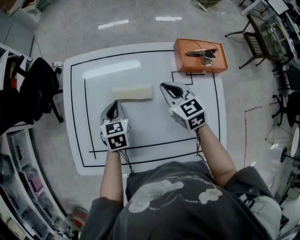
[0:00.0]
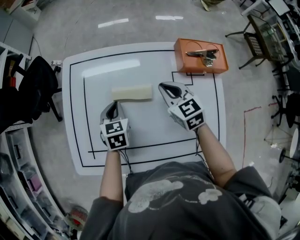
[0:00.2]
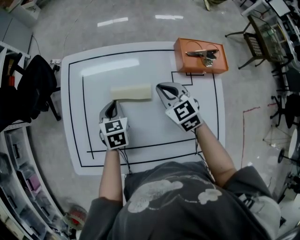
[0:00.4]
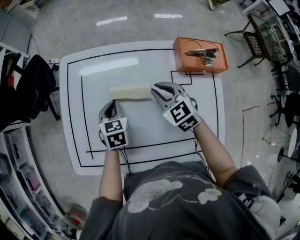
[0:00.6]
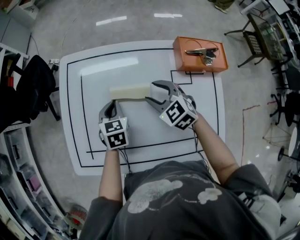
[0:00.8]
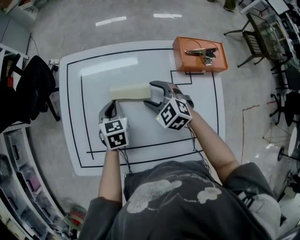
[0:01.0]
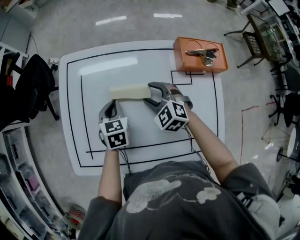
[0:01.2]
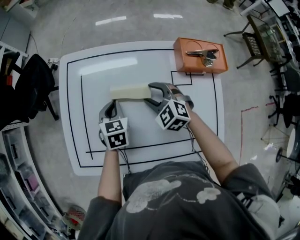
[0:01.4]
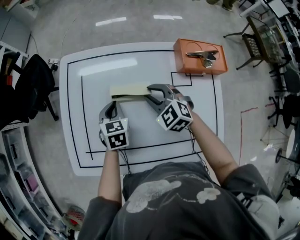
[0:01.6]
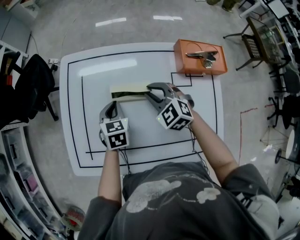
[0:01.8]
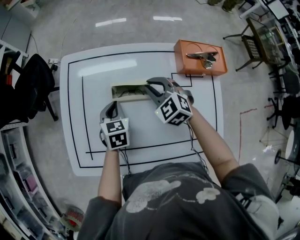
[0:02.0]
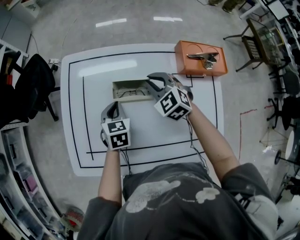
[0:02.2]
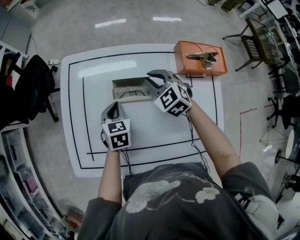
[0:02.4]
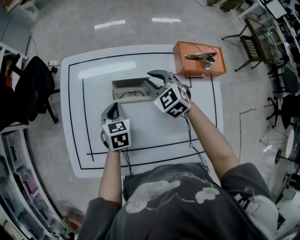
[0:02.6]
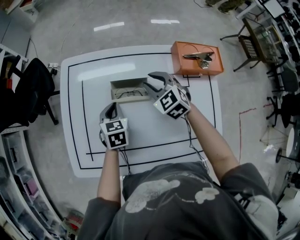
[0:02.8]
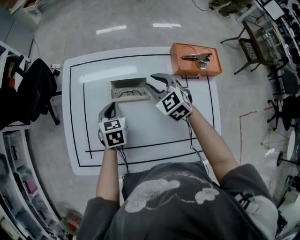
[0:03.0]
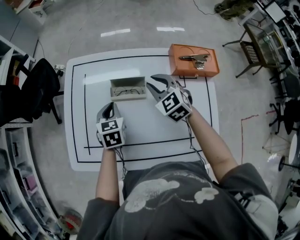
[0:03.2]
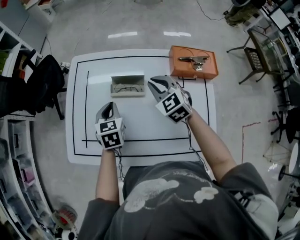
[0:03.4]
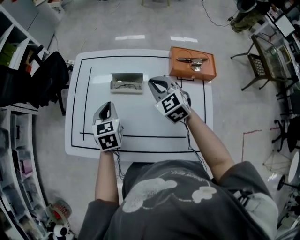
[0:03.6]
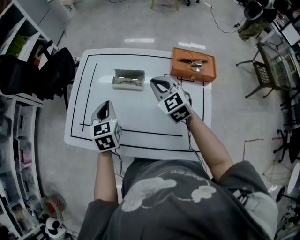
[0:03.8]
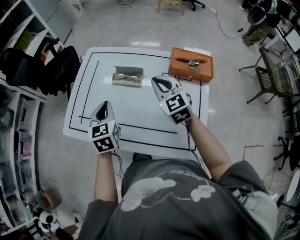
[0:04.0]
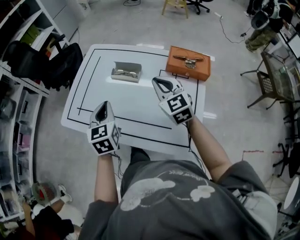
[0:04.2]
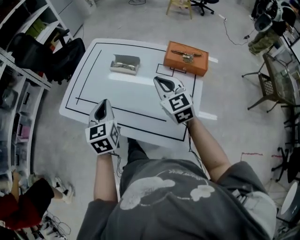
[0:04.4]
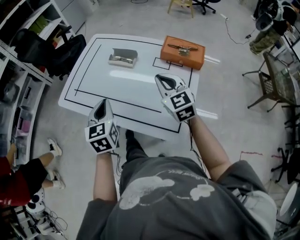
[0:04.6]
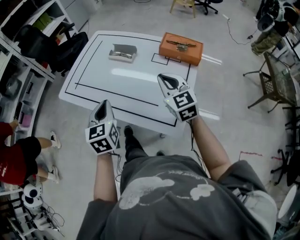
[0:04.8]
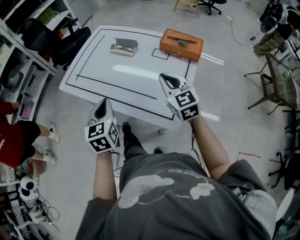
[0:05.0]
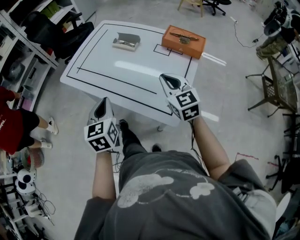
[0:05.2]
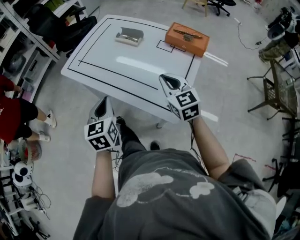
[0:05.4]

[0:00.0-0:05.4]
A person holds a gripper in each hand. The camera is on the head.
0:00.0 to 0:01.4: The right gripper heads downward and to the left, covering approximately 10 cm, swivels roughly 40 degrees, and opens its fingers.
0:01.4 to 0:02.8: The right gripper is displaced forward by about 5 cm, and closes up.
0:02.8 to 0:04.0: The right gripper travels backward and upward by about 20 cm, and closes its fingers, while the left gripper shifts about 20 cm upward and backward, and rotates roughly 30 degrees.
0:04.0 to 0:05.4: The two grippers go approximately 25 cm backward.

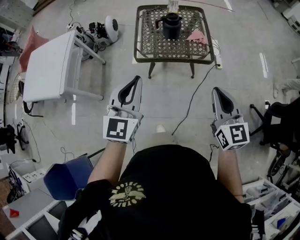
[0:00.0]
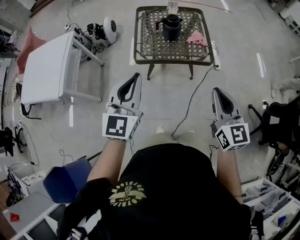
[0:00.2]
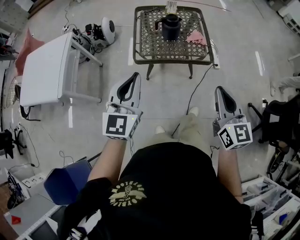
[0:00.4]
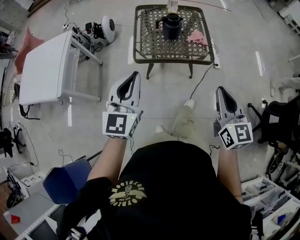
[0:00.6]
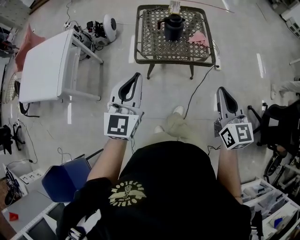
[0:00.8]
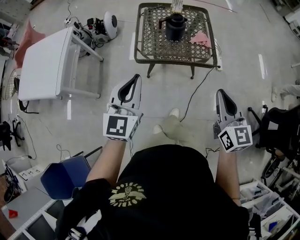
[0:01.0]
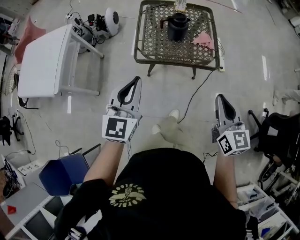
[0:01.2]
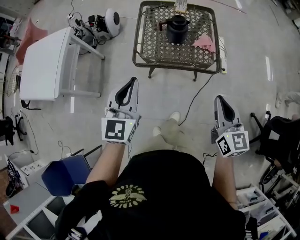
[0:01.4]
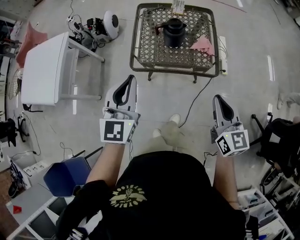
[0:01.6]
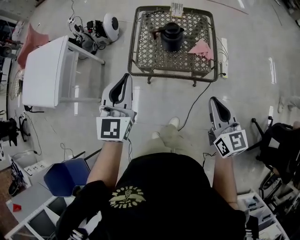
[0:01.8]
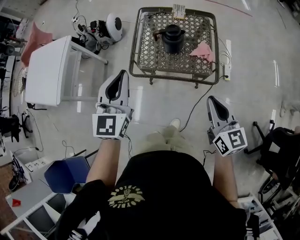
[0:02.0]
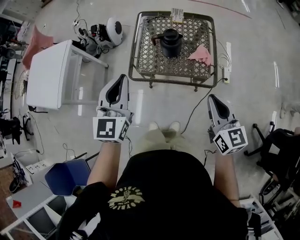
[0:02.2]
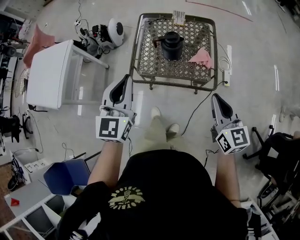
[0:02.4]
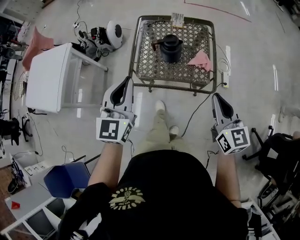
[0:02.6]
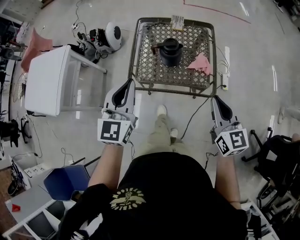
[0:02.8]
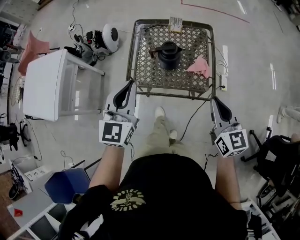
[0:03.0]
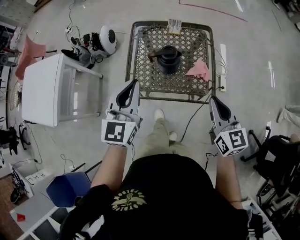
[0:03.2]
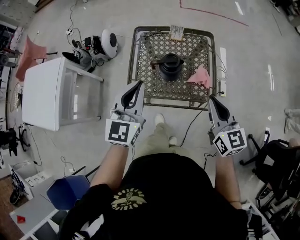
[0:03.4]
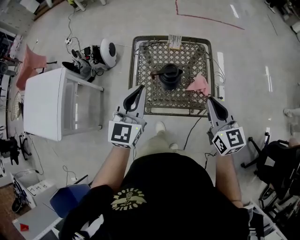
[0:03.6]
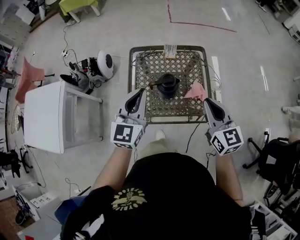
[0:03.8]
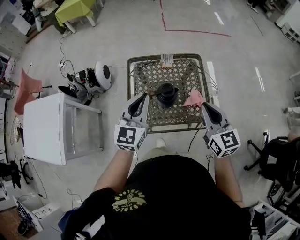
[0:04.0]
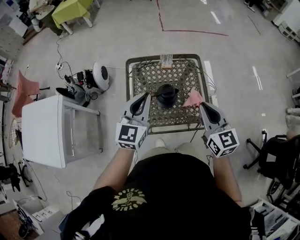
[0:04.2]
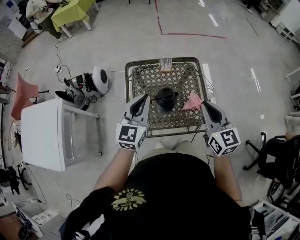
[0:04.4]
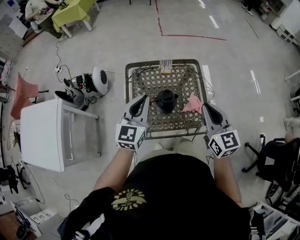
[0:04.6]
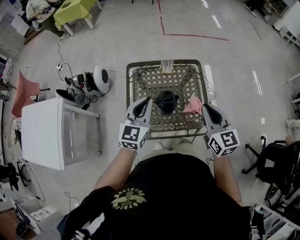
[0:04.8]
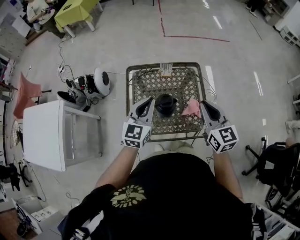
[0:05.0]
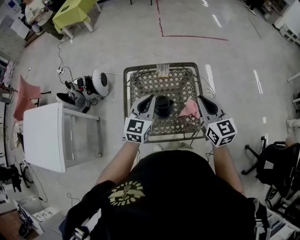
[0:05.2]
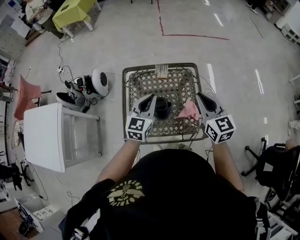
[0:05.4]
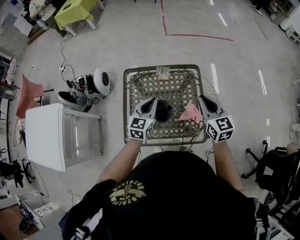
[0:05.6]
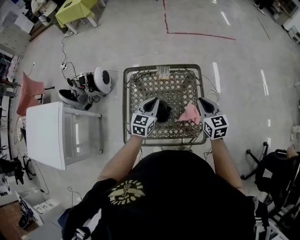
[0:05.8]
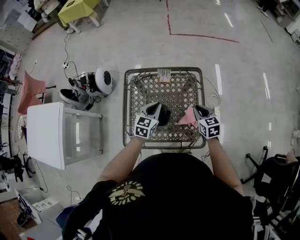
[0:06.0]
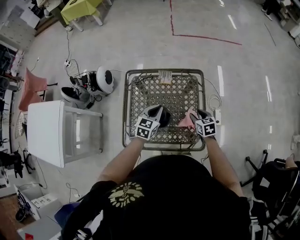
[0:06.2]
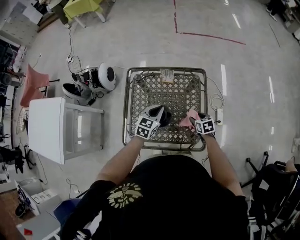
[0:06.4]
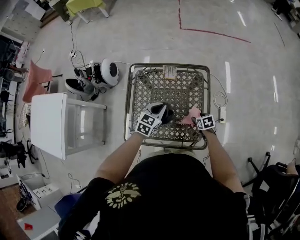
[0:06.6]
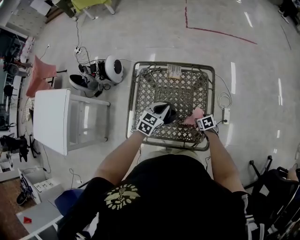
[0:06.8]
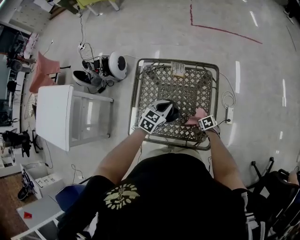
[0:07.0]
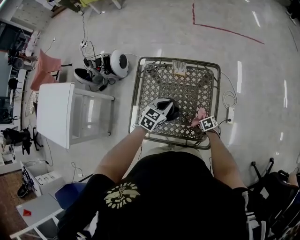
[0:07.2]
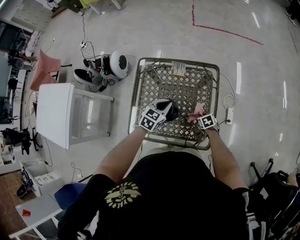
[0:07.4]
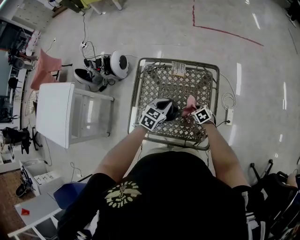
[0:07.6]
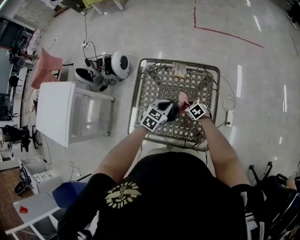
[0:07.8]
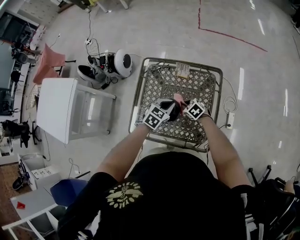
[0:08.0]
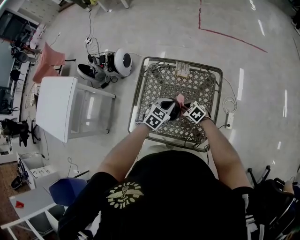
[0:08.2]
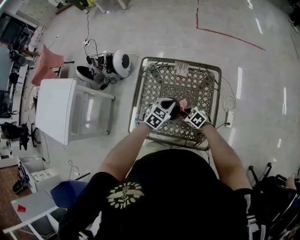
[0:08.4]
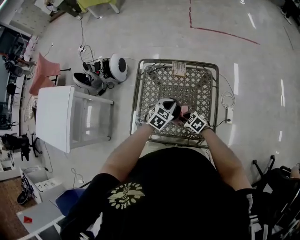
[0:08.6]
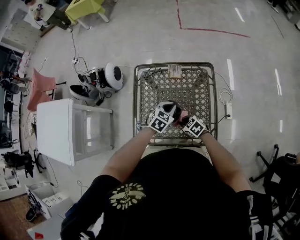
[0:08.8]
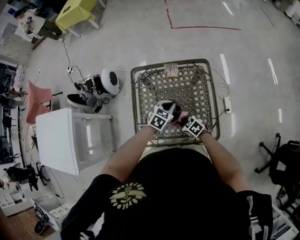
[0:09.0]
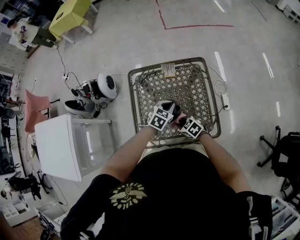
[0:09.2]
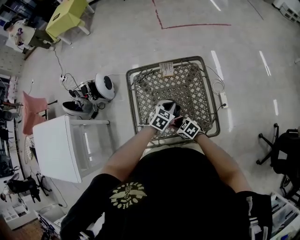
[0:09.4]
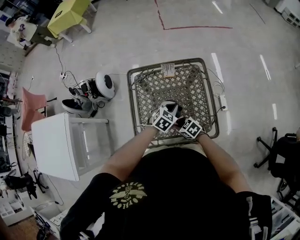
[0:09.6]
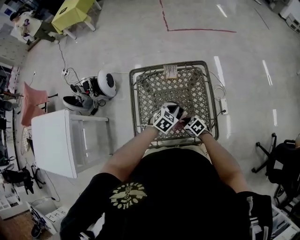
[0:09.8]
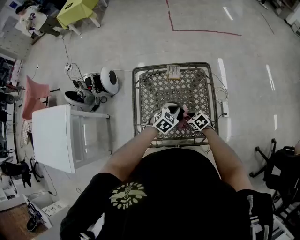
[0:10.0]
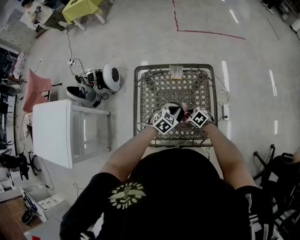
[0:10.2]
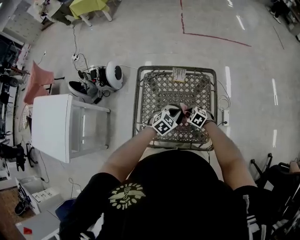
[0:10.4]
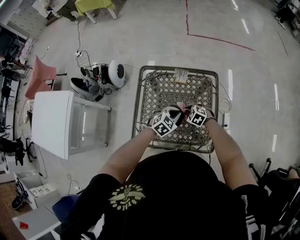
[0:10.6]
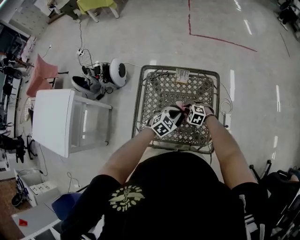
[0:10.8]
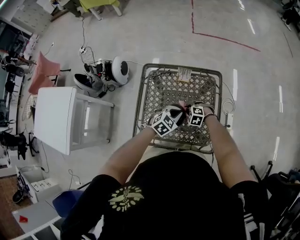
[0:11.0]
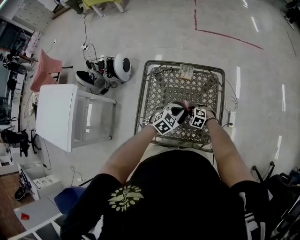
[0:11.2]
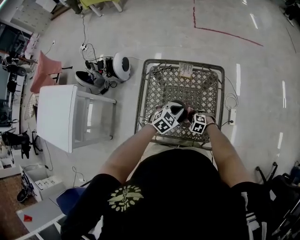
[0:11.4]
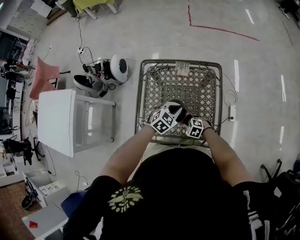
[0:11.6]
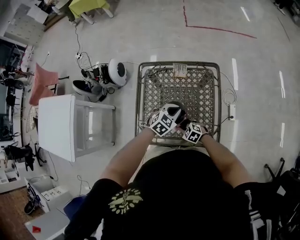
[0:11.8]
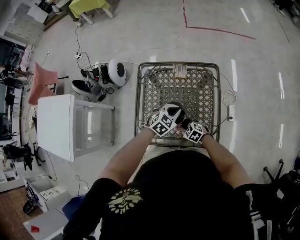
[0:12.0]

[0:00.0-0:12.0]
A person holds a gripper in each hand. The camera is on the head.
0:00.0 to 0:01.6: The left gripper goes approximately 15 cm forward. Meanwhile the right gripper is displaced forward and downward by some 15 cm.
0:01.6 to 0:03.0: The right gripper shifts about 15 cm forward. Meanwhile the left gripper shifts about 15 cm forward and to the right.
0:03.0 to 0:04.4: The right gripper travels forward and to the left by about 15 cm; the left gripper heads forward, covering approximately 15 cm.
0:04.4 to 0:06.0: The left gripper moves downward, forward and to the right, approximately 25 cm, and rotates some 20 degrees; the right gripper moves downward and forward, approximately 25 cm, and changes its angle by roughly 20 degrees.
0:06.0 to 0:07.6: The left gripper travels downward by approximately 5 cm. The right gripper goes approximately 20 cm downward, swivels about 30 degrees, and opens, then closes again.
0:07.6 to 0:09.0: The right gripper moves to the left, backward and upward, some 20 cm.
0:09.0 to 0:10.4: The right gripper travels forward and to the right by roughly 10 cm, and rotates approximately 20 degrees.
0:10.4 to 0:12.0: The right gripper changes place by about 10 cm.

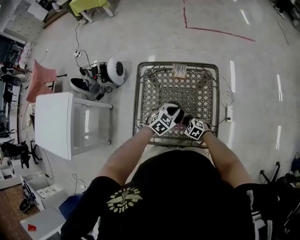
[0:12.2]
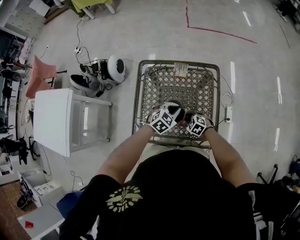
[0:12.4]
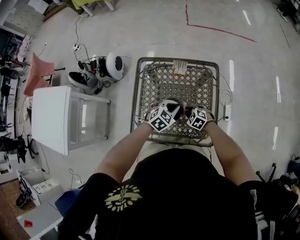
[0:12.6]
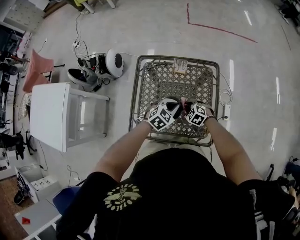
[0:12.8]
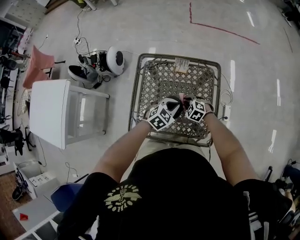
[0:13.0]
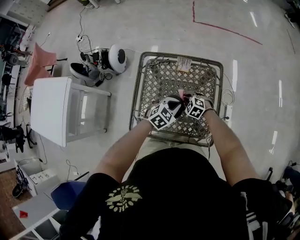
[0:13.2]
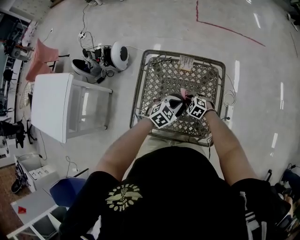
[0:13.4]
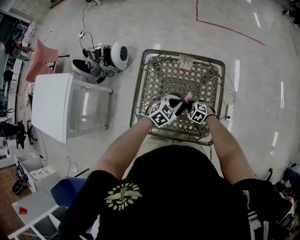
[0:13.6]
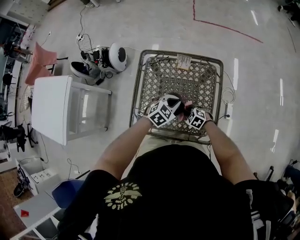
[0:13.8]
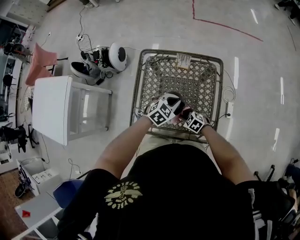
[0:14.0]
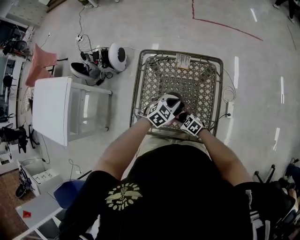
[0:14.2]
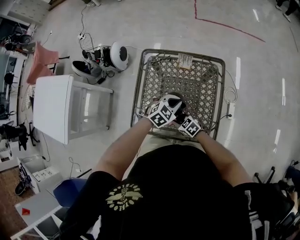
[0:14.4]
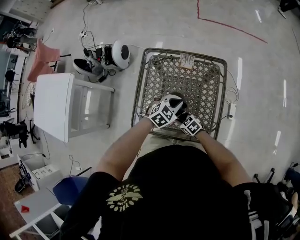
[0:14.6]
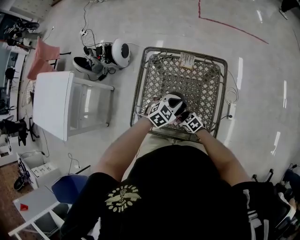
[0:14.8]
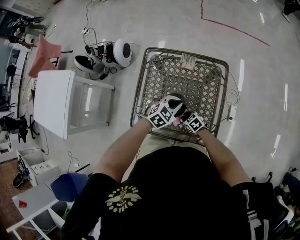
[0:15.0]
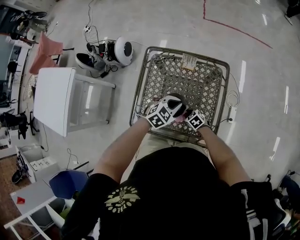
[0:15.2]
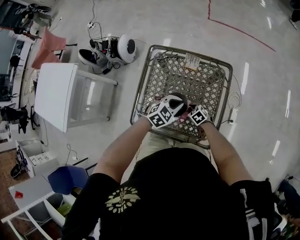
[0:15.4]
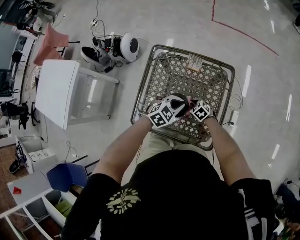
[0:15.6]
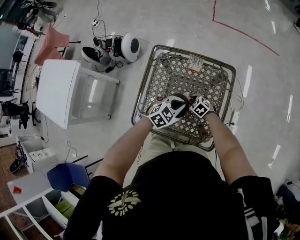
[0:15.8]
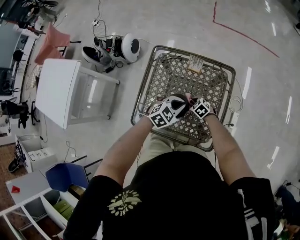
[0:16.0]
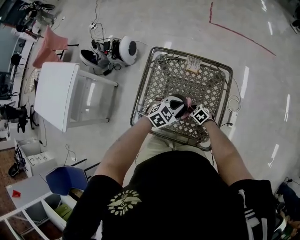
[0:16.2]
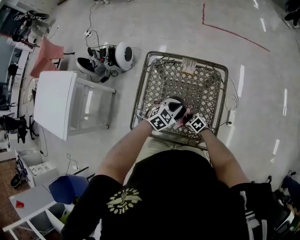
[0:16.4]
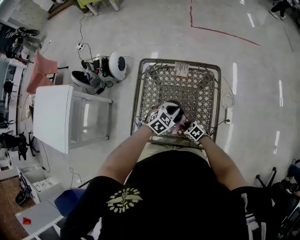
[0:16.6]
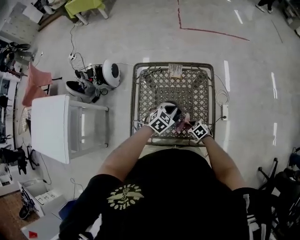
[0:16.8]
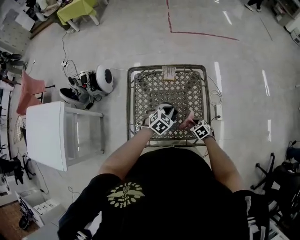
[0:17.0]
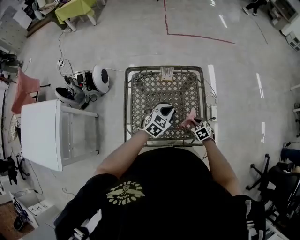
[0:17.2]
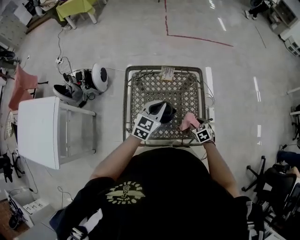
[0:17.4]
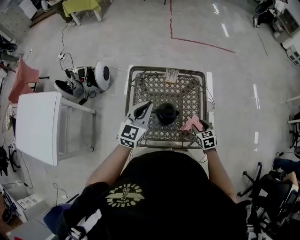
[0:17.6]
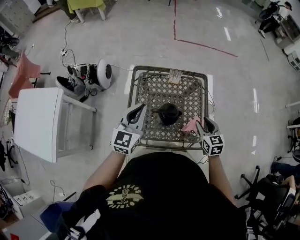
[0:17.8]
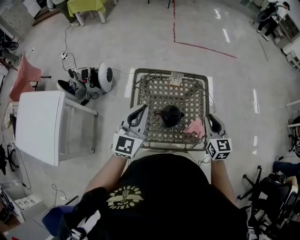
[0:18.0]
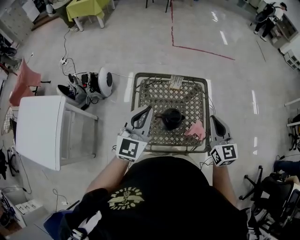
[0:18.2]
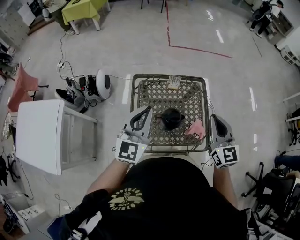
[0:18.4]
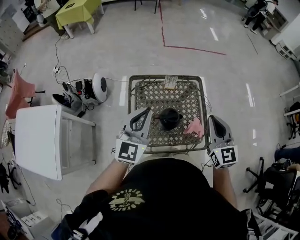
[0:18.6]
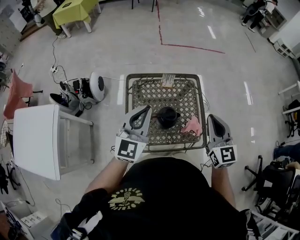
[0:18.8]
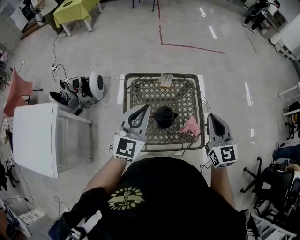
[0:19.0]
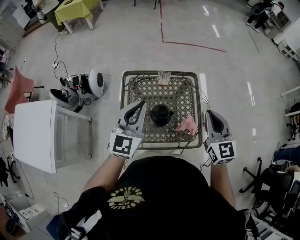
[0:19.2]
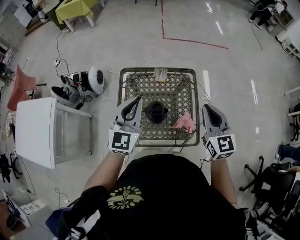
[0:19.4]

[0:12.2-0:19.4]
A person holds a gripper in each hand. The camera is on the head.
0:12.2 to 0:13.6: The right gripper travels forward by some 5 cm.
0:13.6 to 0:15.0: The right gripper rotates about 30 degrees.
0:16.6 to 0:18.0: Both grippers move upward, some 30 cm. The left gripper tips its fingers upward by about 40 degrees; the right gripper angles its fingers upward, by approximately 30 degrees, and opens, then closes again.
0:18.0 to 0:19.4: The left gripper goes approximately 10 cm to the right; the right gripper heads upward and to the right, covering some 10 cm.
